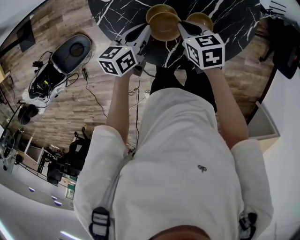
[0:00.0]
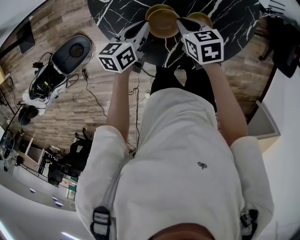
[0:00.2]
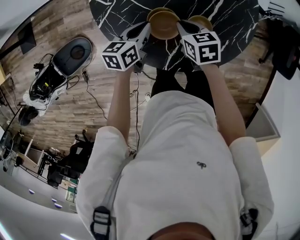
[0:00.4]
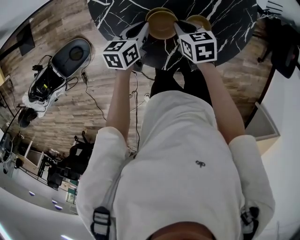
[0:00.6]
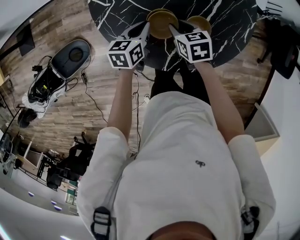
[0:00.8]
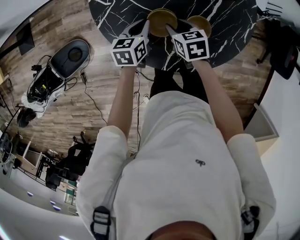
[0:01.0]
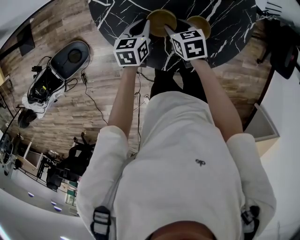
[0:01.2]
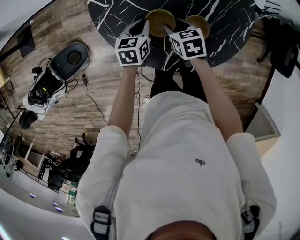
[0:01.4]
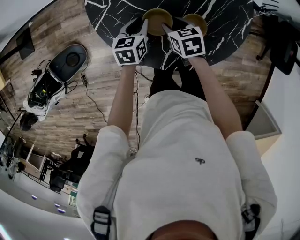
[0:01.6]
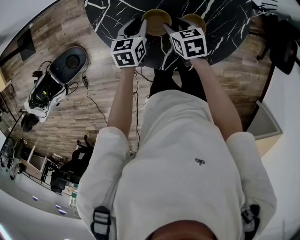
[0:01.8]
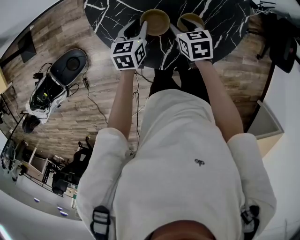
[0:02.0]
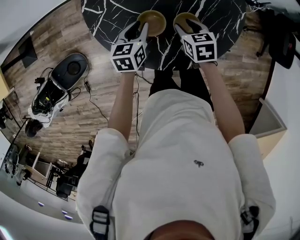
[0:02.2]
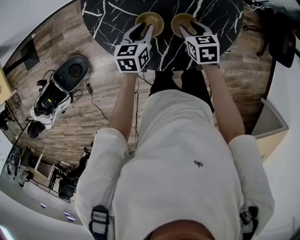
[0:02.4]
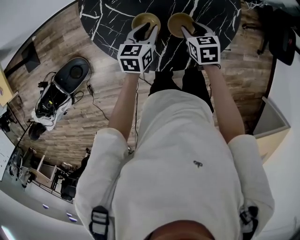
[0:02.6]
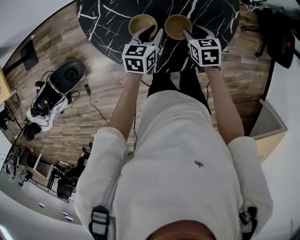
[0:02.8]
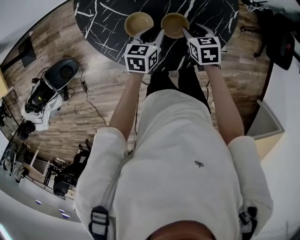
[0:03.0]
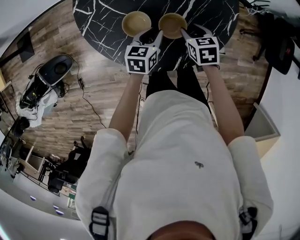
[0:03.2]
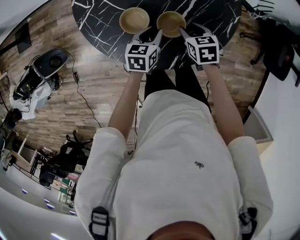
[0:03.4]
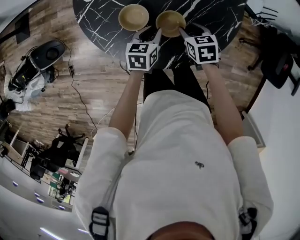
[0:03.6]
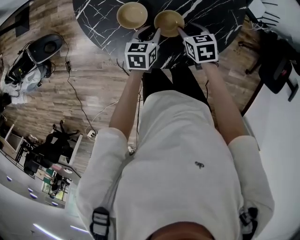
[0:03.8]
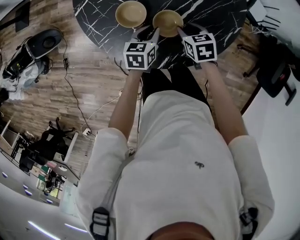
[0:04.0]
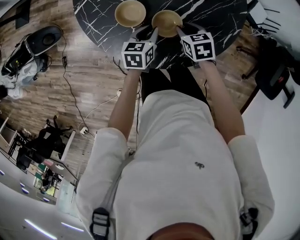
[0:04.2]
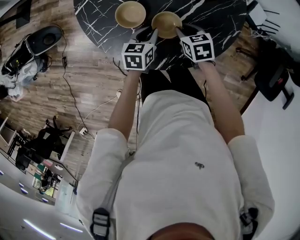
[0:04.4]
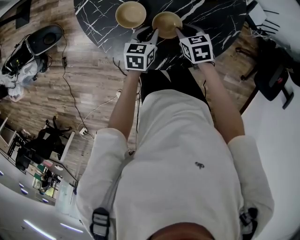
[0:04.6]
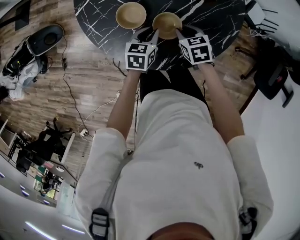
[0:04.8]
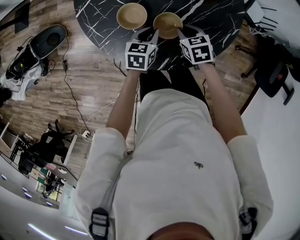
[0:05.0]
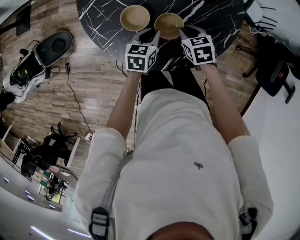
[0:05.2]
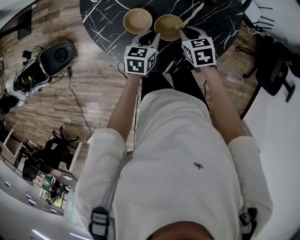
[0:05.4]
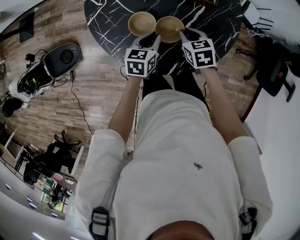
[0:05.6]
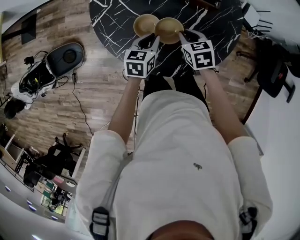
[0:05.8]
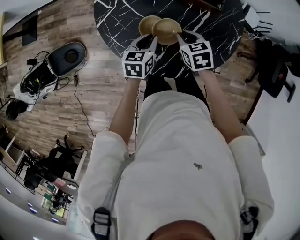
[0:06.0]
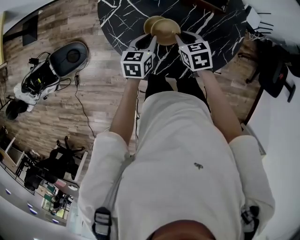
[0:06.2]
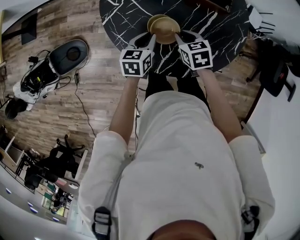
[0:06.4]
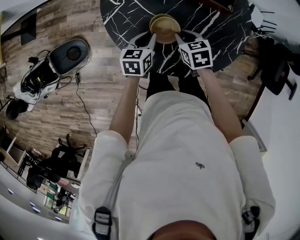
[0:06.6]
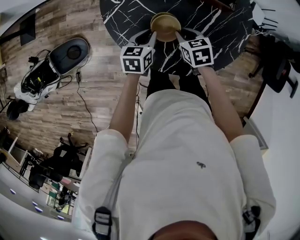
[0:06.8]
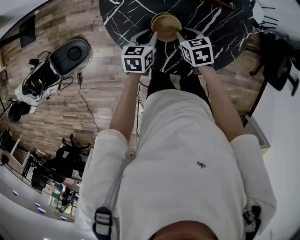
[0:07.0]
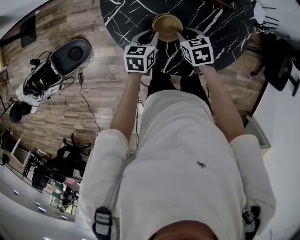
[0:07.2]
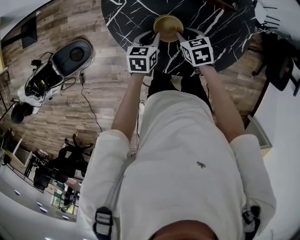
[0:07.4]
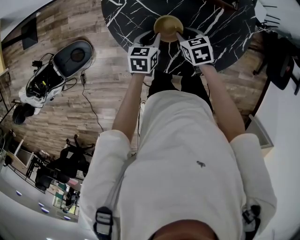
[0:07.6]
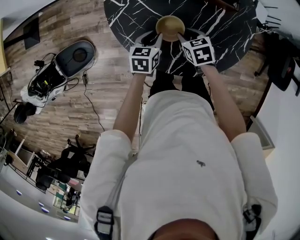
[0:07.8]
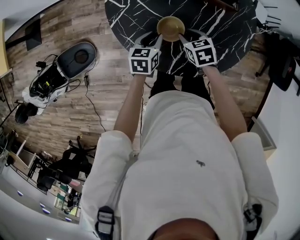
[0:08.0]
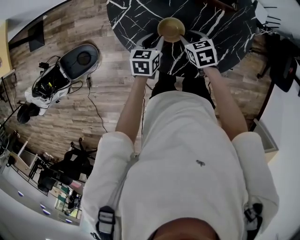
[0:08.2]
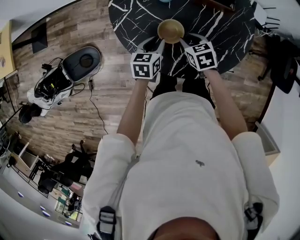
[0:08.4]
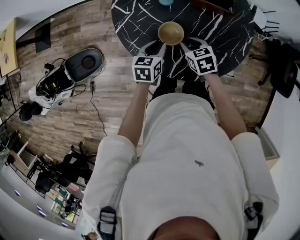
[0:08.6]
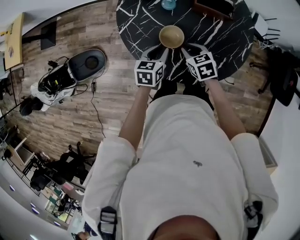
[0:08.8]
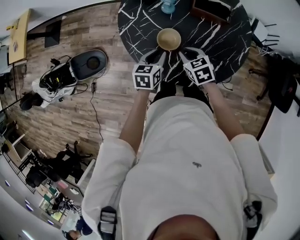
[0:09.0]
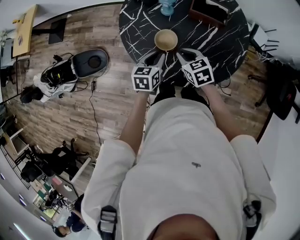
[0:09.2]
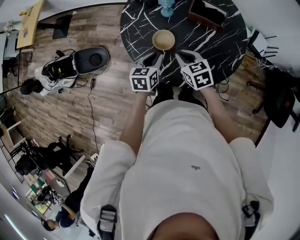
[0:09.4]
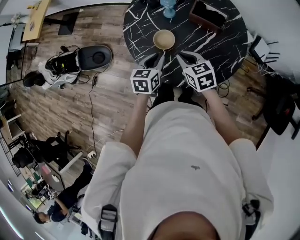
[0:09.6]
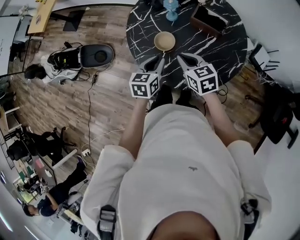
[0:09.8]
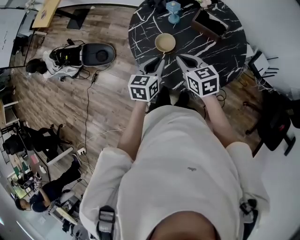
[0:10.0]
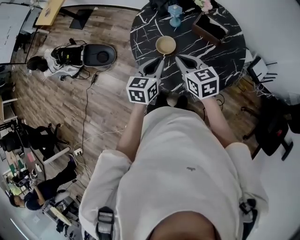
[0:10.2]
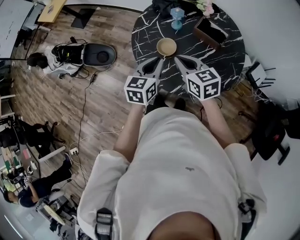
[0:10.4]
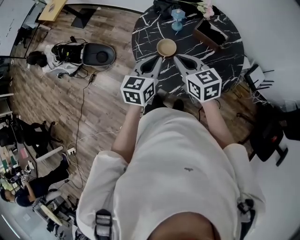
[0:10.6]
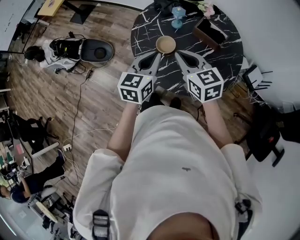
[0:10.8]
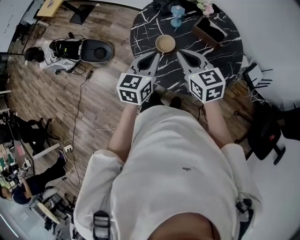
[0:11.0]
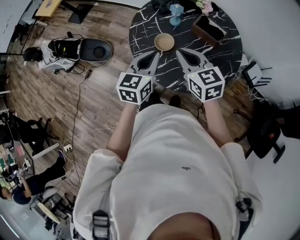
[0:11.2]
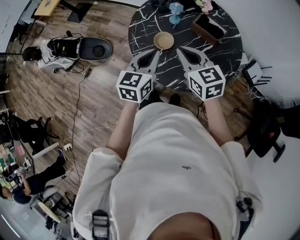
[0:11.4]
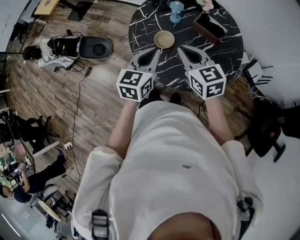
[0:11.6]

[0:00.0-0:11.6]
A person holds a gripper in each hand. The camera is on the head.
0:00.0 to 0:01.4: The left gripper shifts some 5 cm downward, and swivels some 20 degrees; the right gripper shifts by about 5 cm, and opens its fingers.
0:01.4 to 0:02.8: The two grippers go approximately 15 cm to the right.
0:02.8 to 0:04.4: The right gripper shifts by some 5 cm, and changes its angle by some 30 degrees; the left gripper shifts approximately 5 cm downward, and swivels approximately 20 degrees.
0:04.4 to 0:05.8: Both grippers move upward and to the left, some 10 cm.
0:05.8 to 0:07.2: The two grippers go approximately 10 cm to the left.
0:07.2 to 0:08.8: The right gripper moves approximately 5 cm. Meanwhile the left gripper ends up roughly 5 cm from where it was.
0:08.8 to 0:10.2: The right gripper travels upward by some 20 cm, changes its angle by approximately 30 degrees, and closes up. The left gripper heads upward and backward, covering about 20 cm, and swivels roughly 30 degrees.
0:10.2 to 0:11.6: Both grippers move upward, roughly 5 cm.

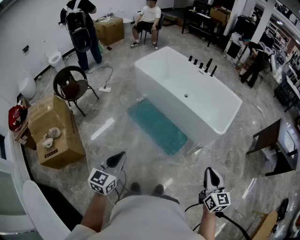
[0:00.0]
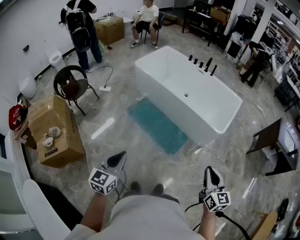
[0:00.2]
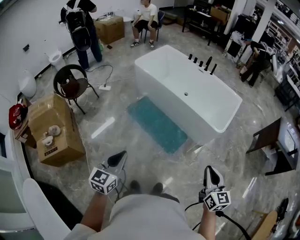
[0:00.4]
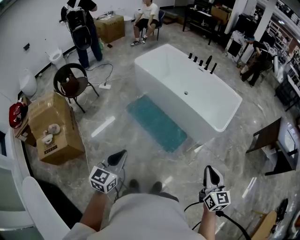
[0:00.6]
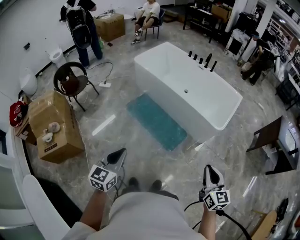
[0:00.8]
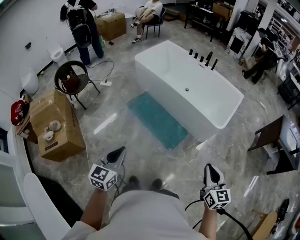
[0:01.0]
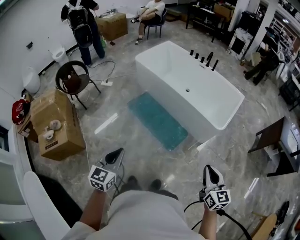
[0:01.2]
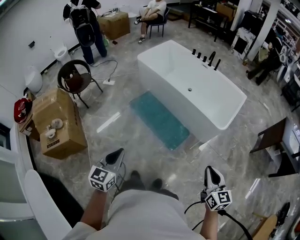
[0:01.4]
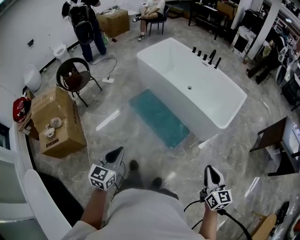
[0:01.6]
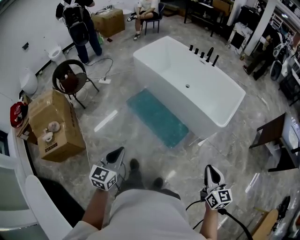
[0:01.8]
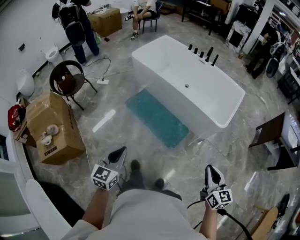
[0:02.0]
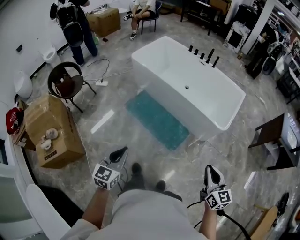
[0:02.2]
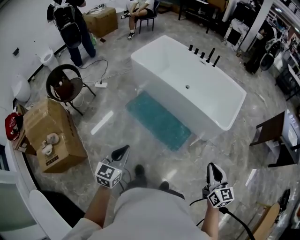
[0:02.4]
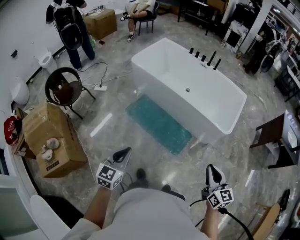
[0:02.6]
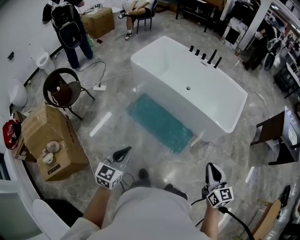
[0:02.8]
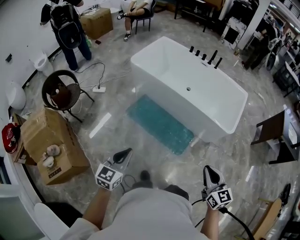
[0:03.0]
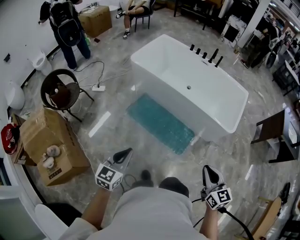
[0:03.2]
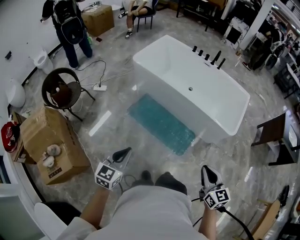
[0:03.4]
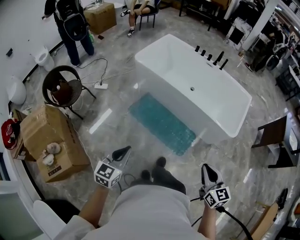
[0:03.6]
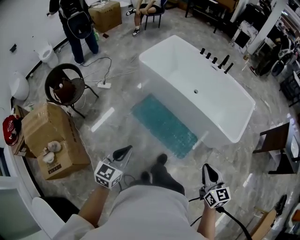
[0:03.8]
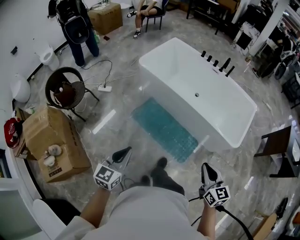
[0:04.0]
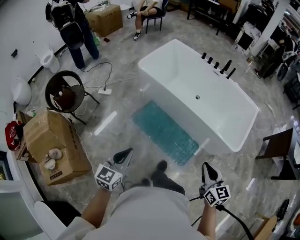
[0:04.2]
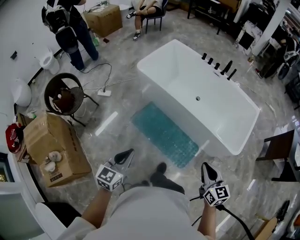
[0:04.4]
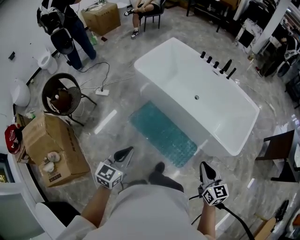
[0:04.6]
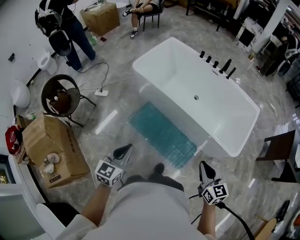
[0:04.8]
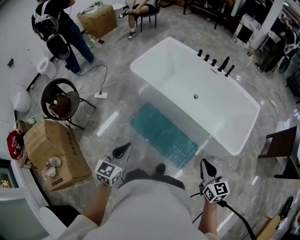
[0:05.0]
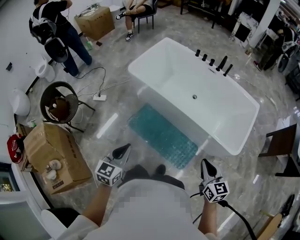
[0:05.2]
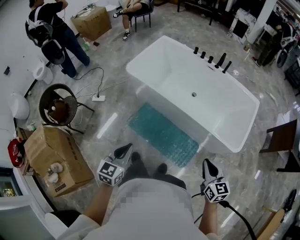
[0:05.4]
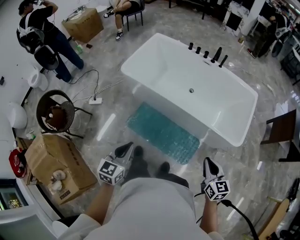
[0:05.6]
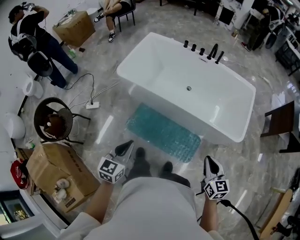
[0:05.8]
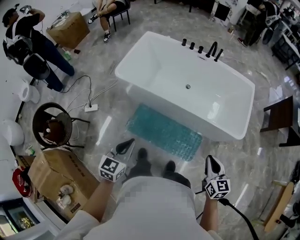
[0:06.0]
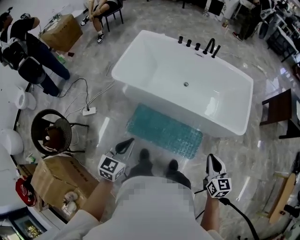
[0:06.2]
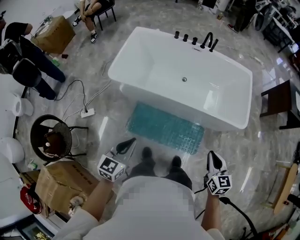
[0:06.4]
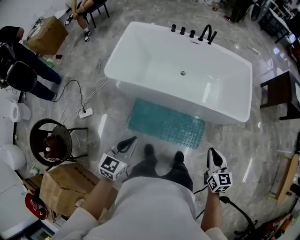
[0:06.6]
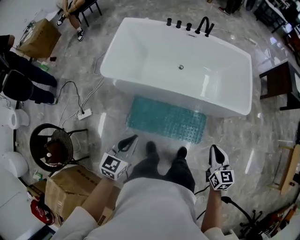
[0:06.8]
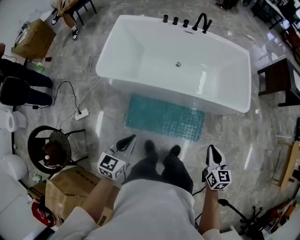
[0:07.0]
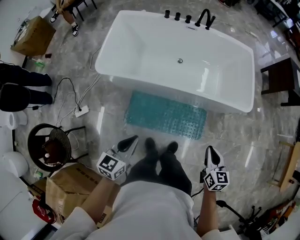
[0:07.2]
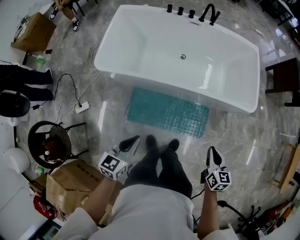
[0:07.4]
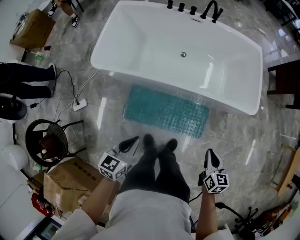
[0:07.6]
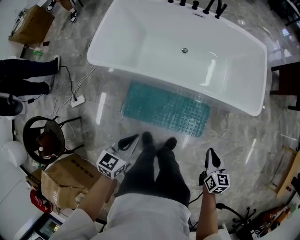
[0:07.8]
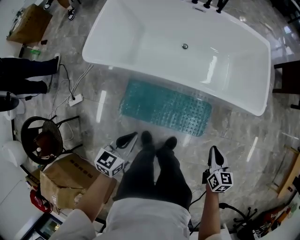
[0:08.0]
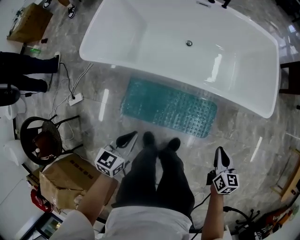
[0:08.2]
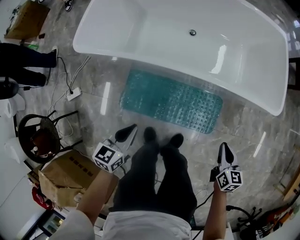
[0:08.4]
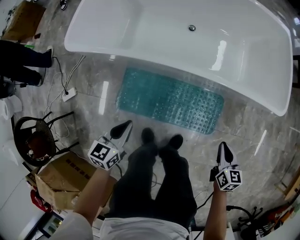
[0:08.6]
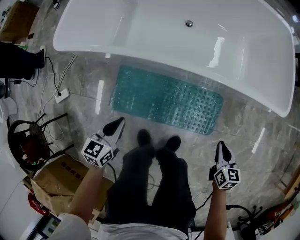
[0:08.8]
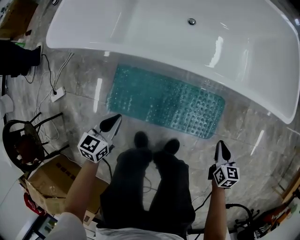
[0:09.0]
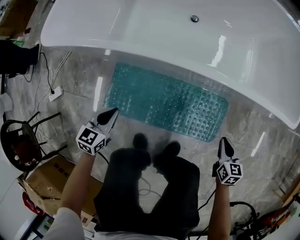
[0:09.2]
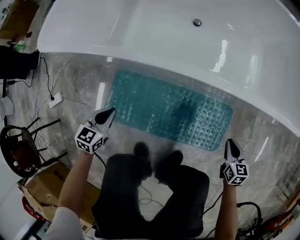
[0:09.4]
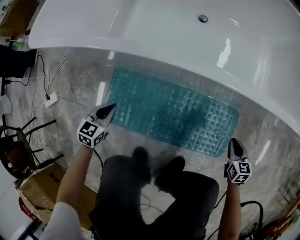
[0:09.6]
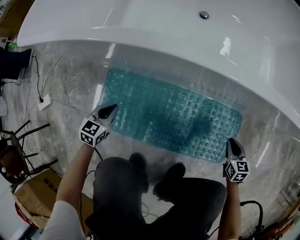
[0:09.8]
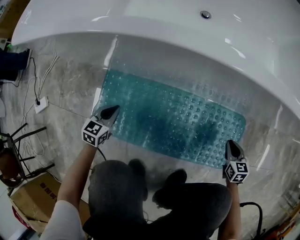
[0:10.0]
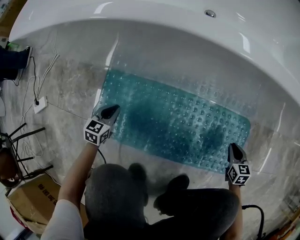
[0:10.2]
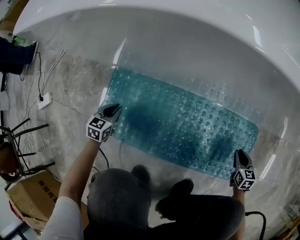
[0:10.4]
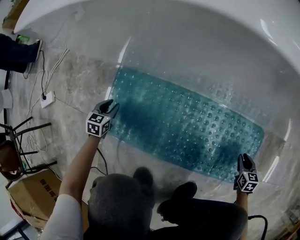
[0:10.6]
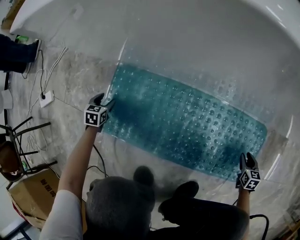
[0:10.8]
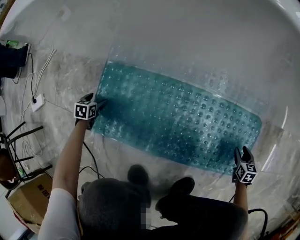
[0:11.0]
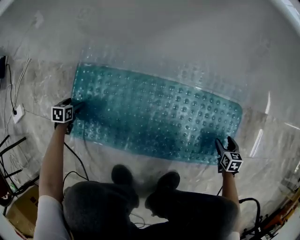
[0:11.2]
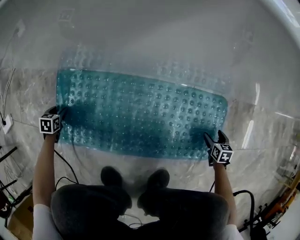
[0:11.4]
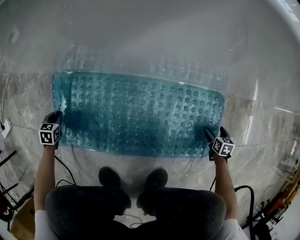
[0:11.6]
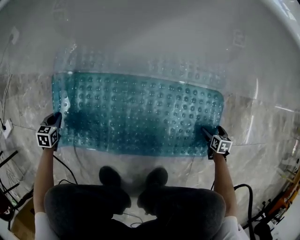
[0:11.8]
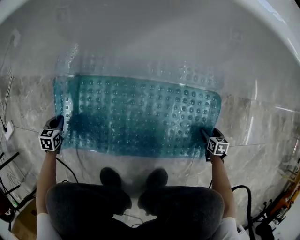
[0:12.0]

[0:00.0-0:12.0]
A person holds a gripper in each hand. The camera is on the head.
0:00.0 to 0:01.6: The two grippers go about 5 cm to the right.
0:01.6 to 0:03.0: The left gripper travels forward and to the left by roughly 30 cm. Meanwhile the right gripper is displaced to the left and forward by about 30 cm.
0:03.0 to 0:04.4: The grippers both shift forward by approximately 25 cm.
0:04.4 to 0:06.0: The right gripper heads forward, covering some 15 cm, and swivels roughly 20 degrees. Meanwhile the left gripper goes about 25 cm forward.
0:06.0 to 0:07.6: The two grippers go about 25 cm downward and forward. The left gripper turns by about 20 degrees, while the right gripper swivels roughly 30 degrees.
0:07.6 to 0:09.0: Both grippers move downward, about 50 cm.
0:09.0 to 0:10.4: The grippers both shift downward by approximately 50 cm.
0:10.4 to 0:12.0: The left gripper shifts roughly 5 cm downward, goes to the left and returns, approximately 10 cm each way, and opens, then closes again. Meanwhile the right gripper moves downward, to the right and backward, about 20 cm, and opens its fingers.
